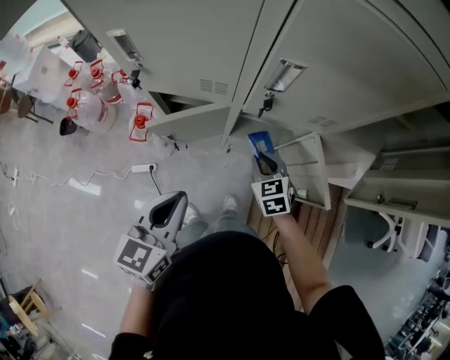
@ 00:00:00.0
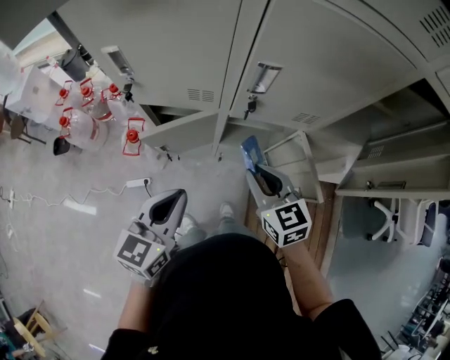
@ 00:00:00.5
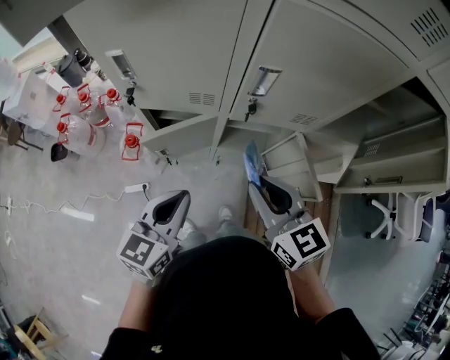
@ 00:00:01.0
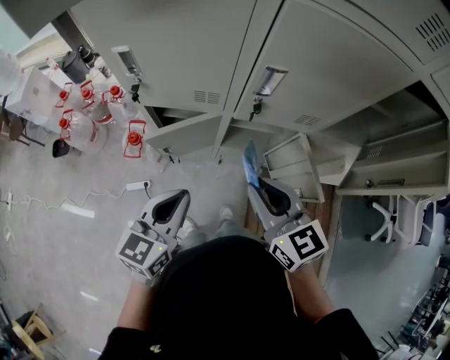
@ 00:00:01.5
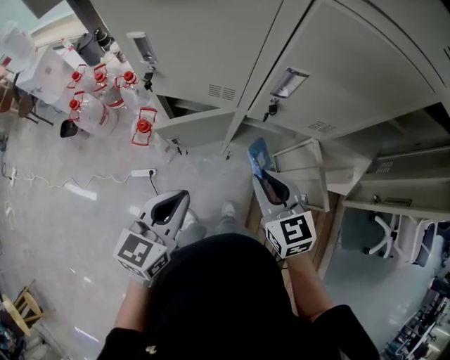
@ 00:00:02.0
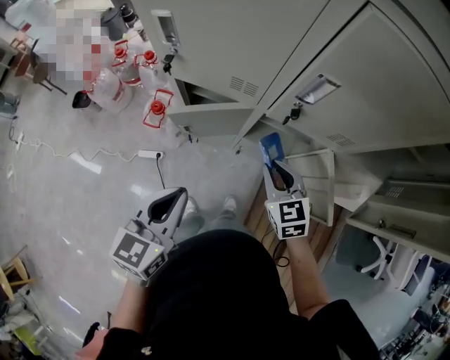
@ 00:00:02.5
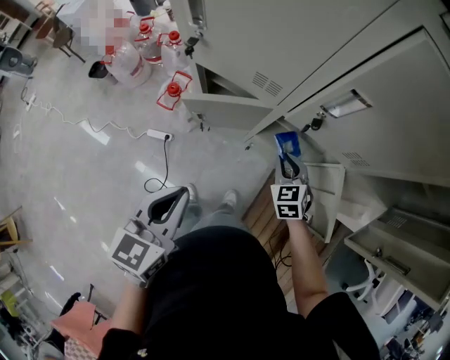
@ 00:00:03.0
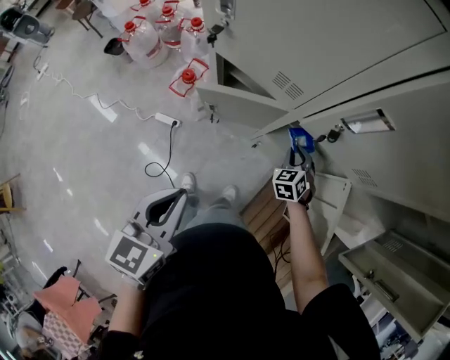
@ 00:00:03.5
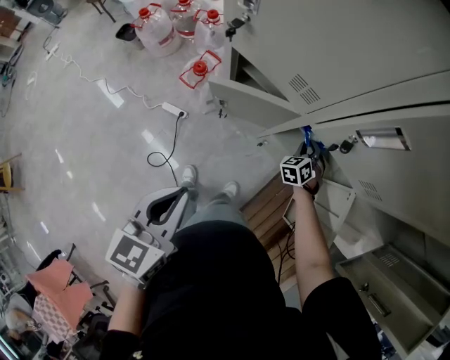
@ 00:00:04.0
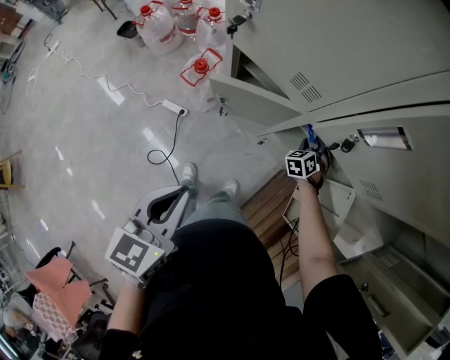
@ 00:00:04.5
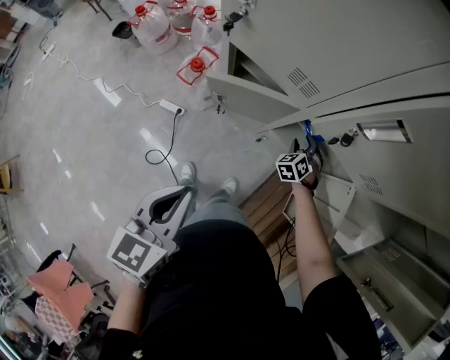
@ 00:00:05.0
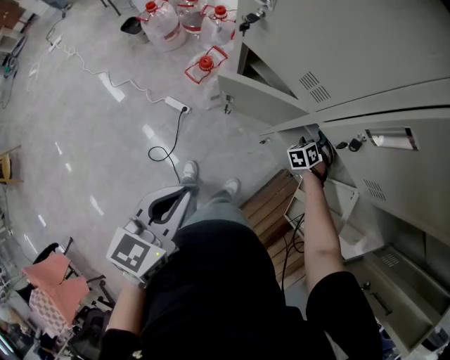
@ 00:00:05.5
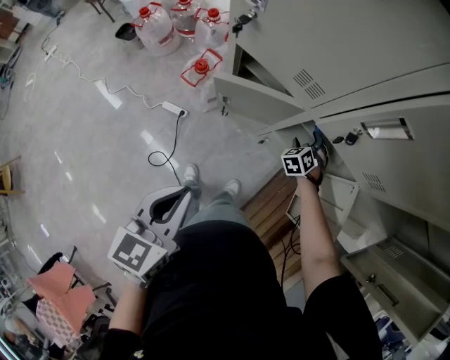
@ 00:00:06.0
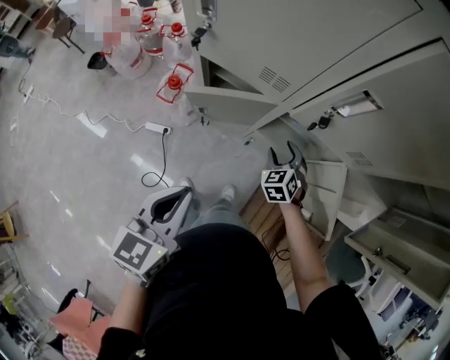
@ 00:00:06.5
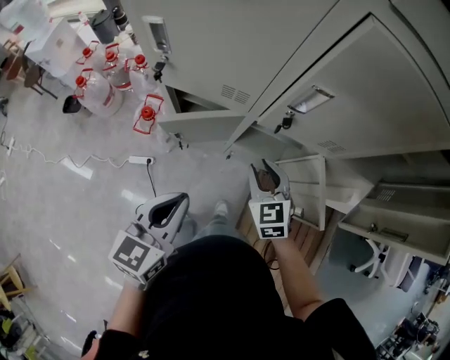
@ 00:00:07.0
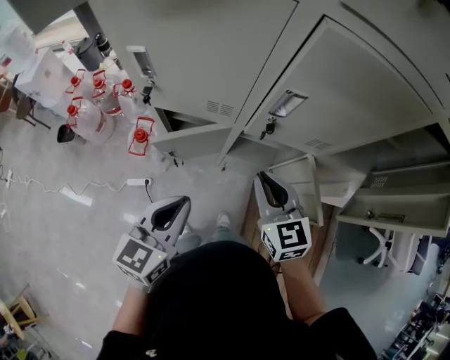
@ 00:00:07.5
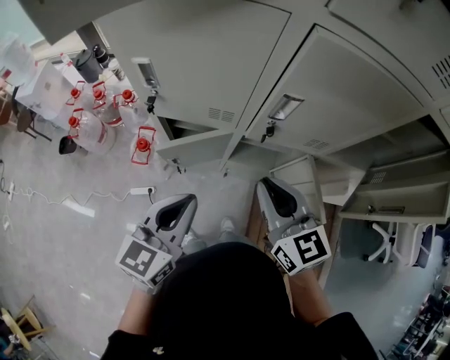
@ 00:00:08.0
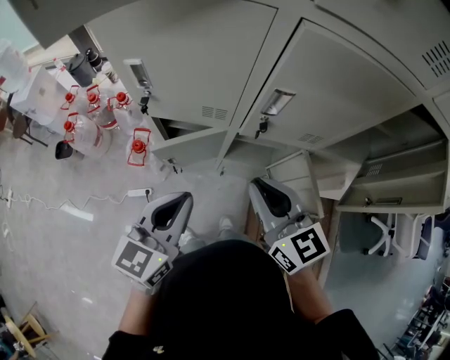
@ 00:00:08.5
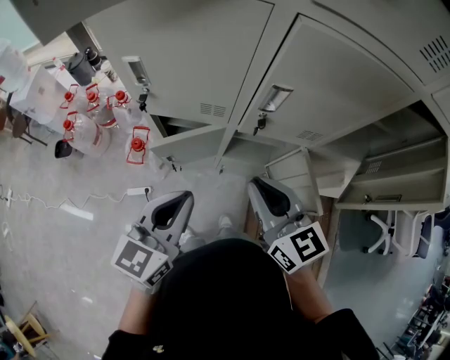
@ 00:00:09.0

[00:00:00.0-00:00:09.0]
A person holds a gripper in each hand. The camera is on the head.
00:00:00.0 to 00:00:02.0: The right gripper moves upward and backward, some 15 cm.
00:00:02.0 to 00:00:04.5: The right gripper travels downward and forward by roughly 40 cm, turns by some 50 degrees, and opens its fingers. Meanwhile the left gripper shifts some 5 cm backward, and turns by approximately 30 degrees.
00:00:04.5 to 00:00:07.0: The right gripper is displaced upward and backward by about 30 cm, changes its angle by roughly 40 degrees, and opens, then closes again. The left gripper heads forward, covering roughly 5 cm, and changes its angle by roughly 30 degrees.
00:00:07.0 to 00:00:09.0: The left gripper goes some 5 cm upward; the right gripper goes approximately 20 cm upward, and changes its angle by approximately 30 degrees.

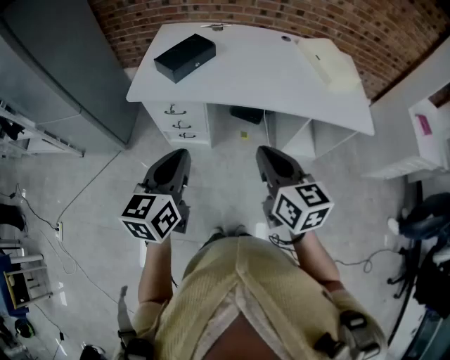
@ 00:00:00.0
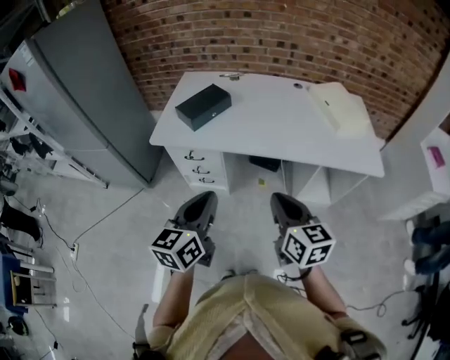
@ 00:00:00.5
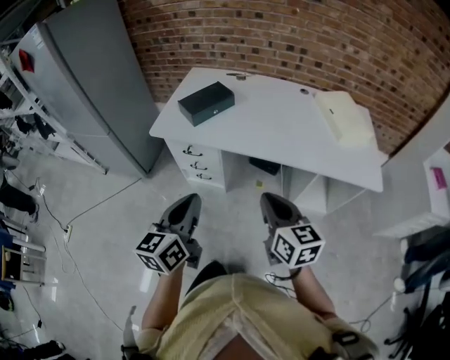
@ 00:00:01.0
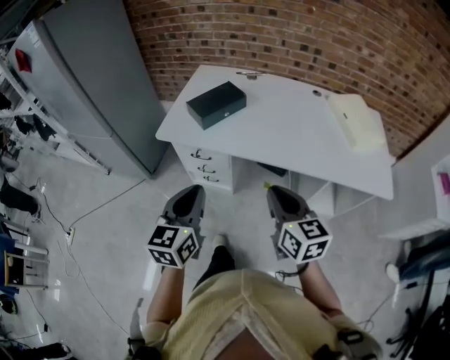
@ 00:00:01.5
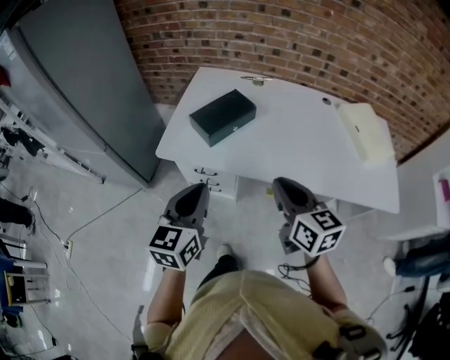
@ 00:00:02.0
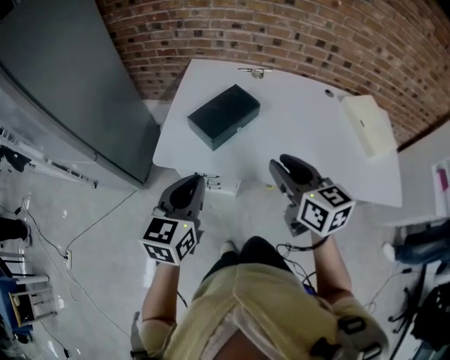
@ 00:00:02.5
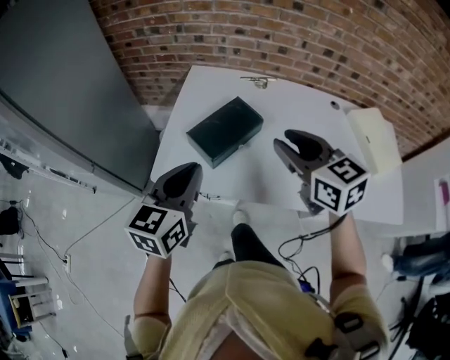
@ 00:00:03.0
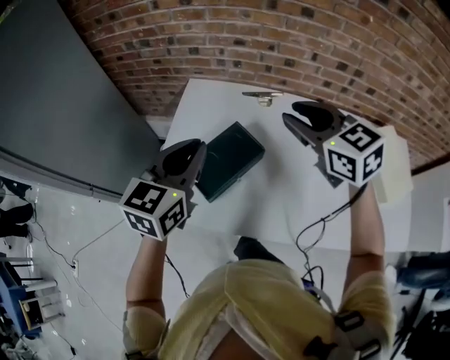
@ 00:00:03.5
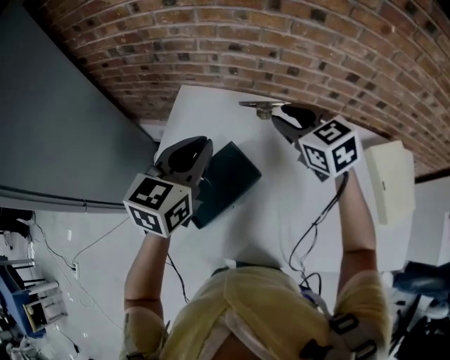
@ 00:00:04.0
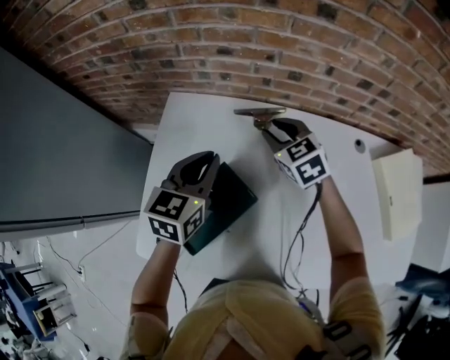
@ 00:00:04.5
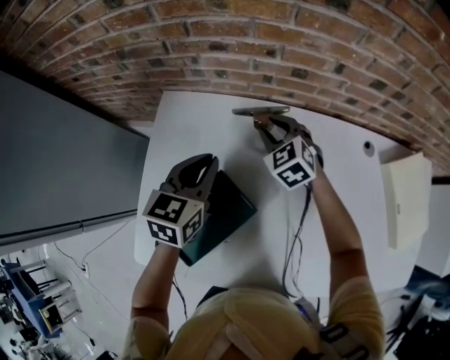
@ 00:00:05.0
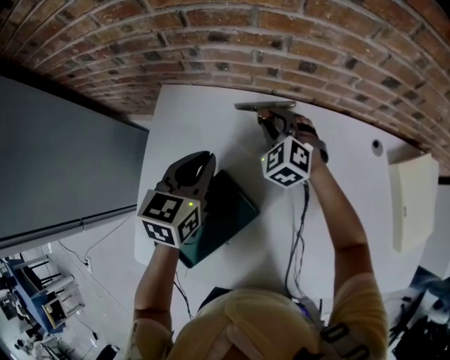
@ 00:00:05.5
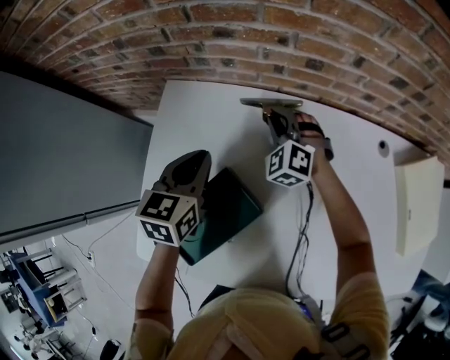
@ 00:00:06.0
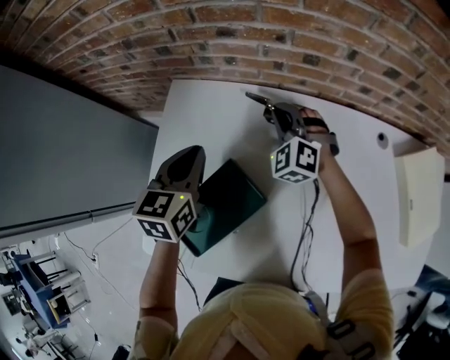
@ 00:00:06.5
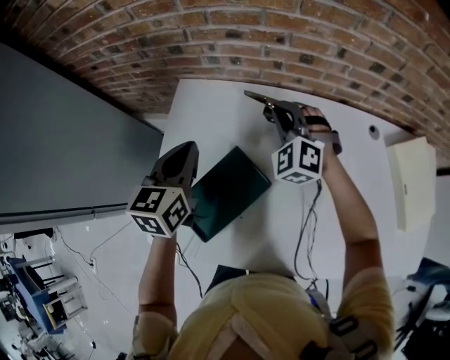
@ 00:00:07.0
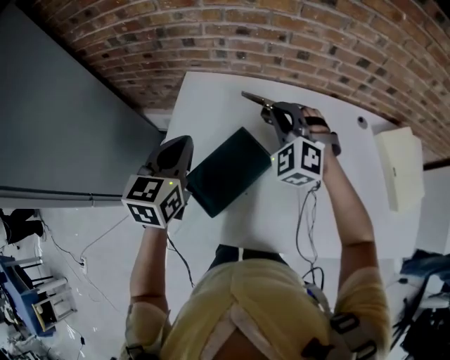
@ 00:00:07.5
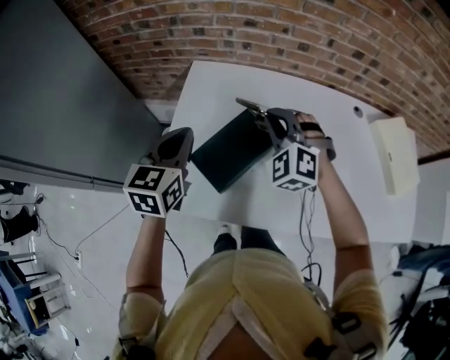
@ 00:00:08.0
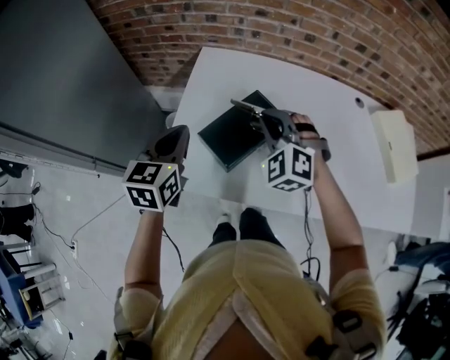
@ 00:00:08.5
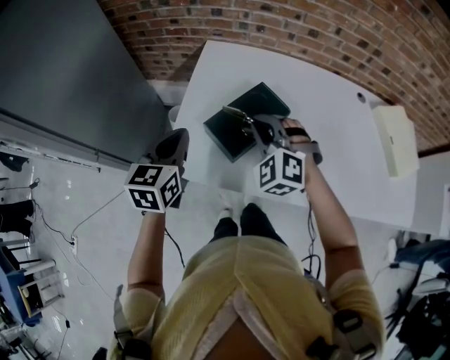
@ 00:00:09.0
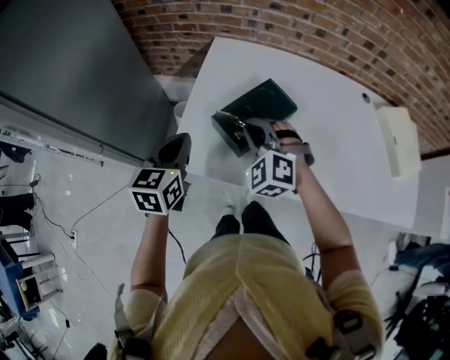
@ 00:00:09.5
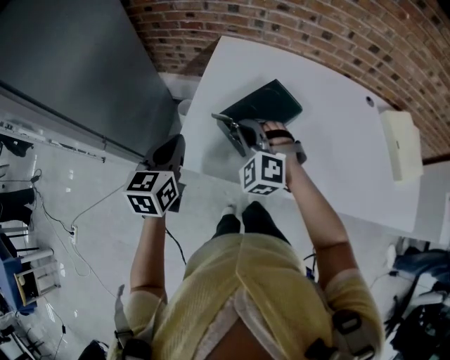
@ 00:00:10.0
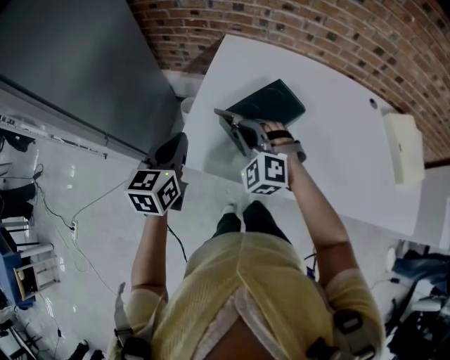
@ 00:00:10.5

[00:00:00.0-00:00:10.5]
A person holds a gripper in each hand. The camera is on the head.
00:00:00.0 to 00:00:02.0: Both grippers move forward, about 20 cm.
00:00:02.0 to 00:00:04.0: Both grippers are carried forward, roughly 50 cm. The right gripper rotates roughly 30 degrees, and opens its fingers.
00:00:04.0 to 00:00:06.5: Both grippers travel together downward and forward, some 20 cm. The right gripper rotates some 40 degrees, and closes its fingers.
00:00:06.5 to 00:00:08.5: The left gripper shifts some 25 cm backward and to the left, while the right gripper goes some 30 cm backward.
00:00:08.5 to 00:00:10.5: The left gripper is displaced backward and to the left by roughly 10 cm, while the right gripper goes approximately 15 cm to the left, downward and backward.

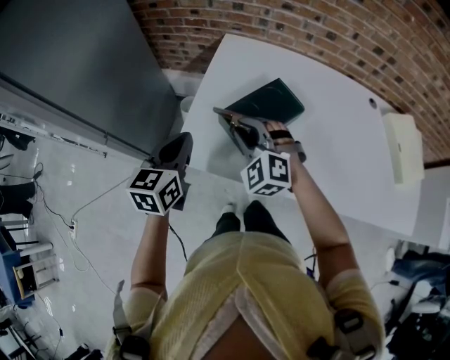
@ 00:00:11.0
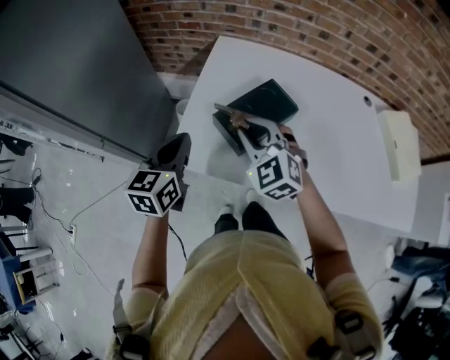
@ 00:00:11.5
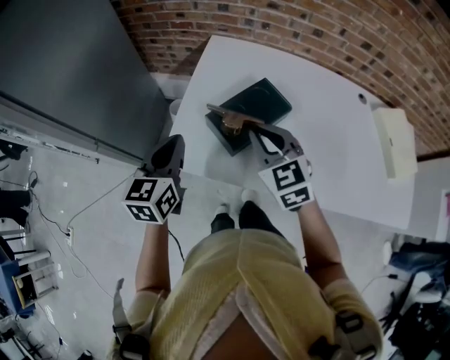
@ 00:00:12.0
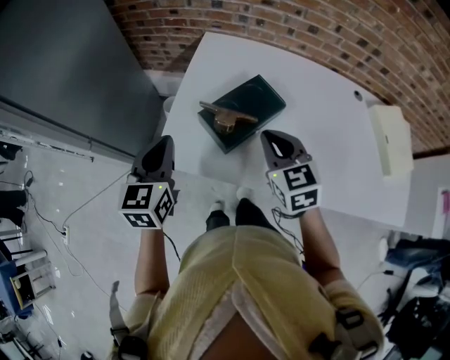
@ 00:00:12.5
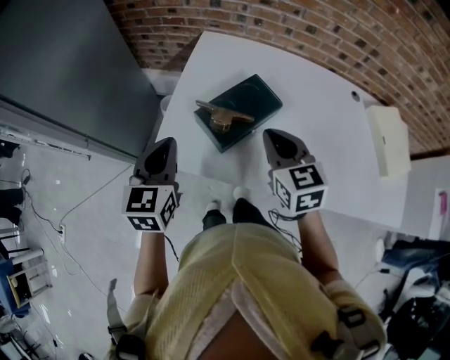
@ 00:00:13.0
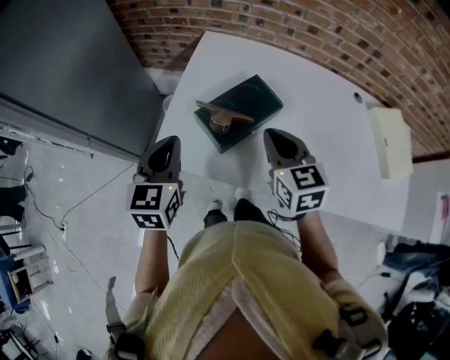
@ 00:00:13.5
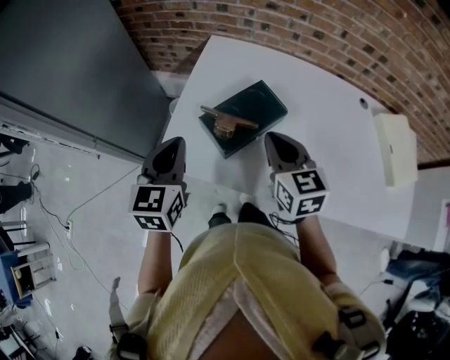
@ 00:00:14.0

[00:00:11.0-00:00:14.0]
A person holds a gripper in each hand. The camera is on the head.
00:00:11.0 to 00:00:12.5: The right gripper shifts some 10 cm to the right, and twists approximately 50 degrees clockwise, seen from behind.
00:00:12.5 to 00:00:14.0: The grippers move only a little.

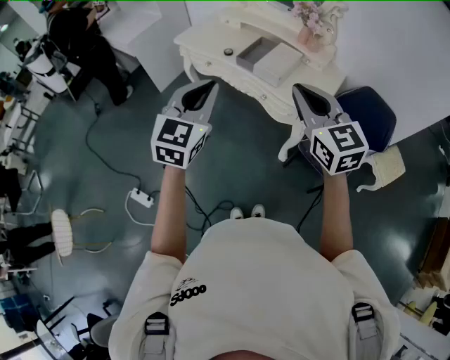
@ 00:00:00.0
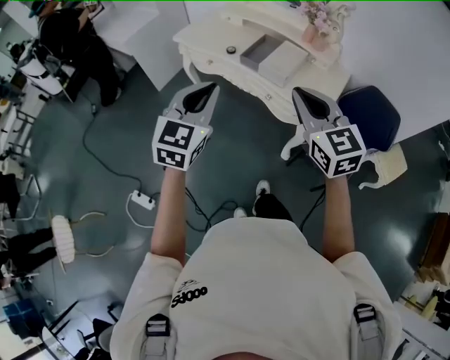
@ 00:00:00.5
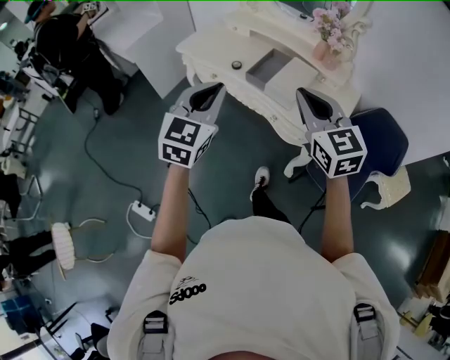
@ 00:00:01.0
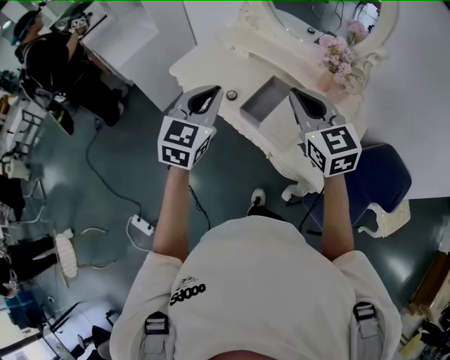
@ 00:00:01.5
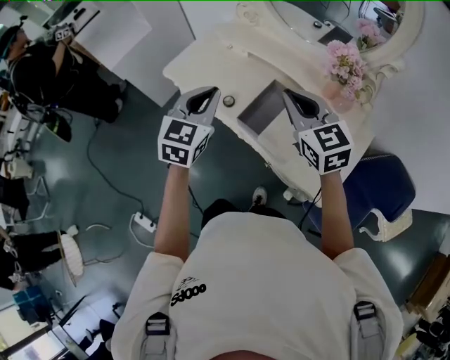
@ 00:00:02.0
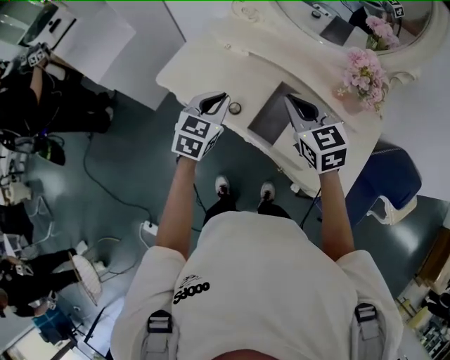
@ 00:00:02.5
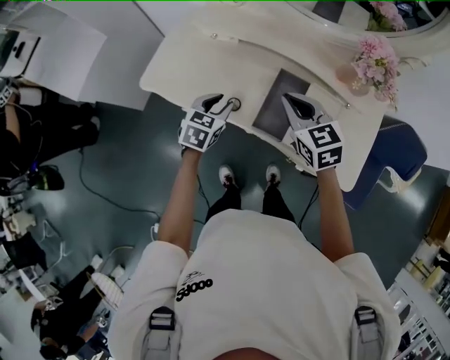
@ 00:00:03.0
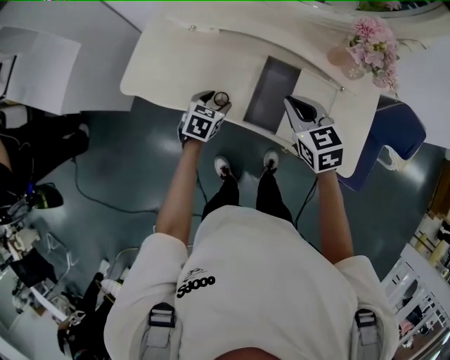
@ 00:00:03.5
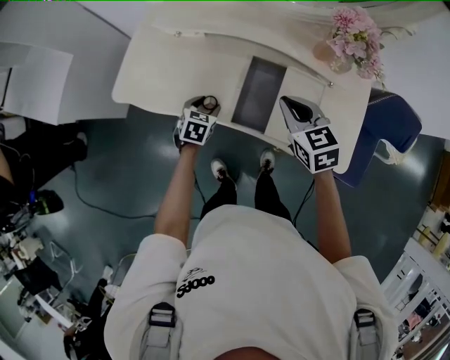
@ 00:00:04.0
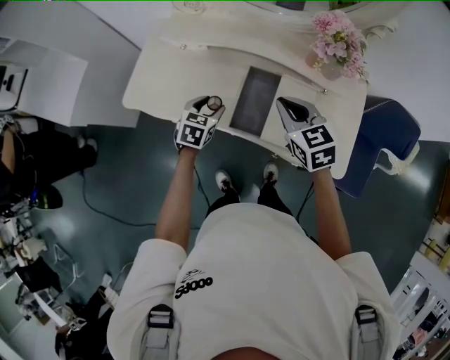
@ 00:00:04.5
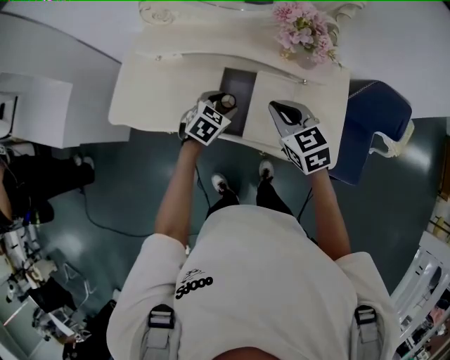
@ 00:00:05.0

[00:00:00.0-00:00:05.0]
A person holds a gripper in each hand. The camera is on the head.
00:00:00.0 to 00:00:02.5: Both grippers are carried forward, about 50 cm. The left gripper swivels about 20 degrees.
00:00:02.5 to 00:00:05.0: The right gripper heads to the right and downward, covering some 10 cm, while the left gripper moves to the right and downward, about 20 cm, turns by roughly 40 degrees, and opens.
